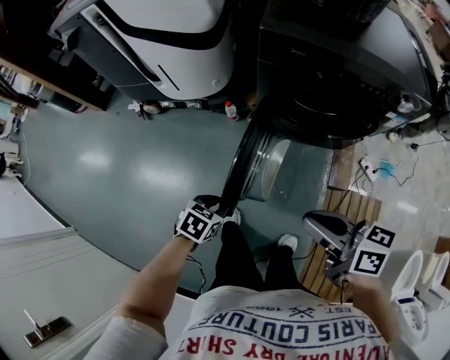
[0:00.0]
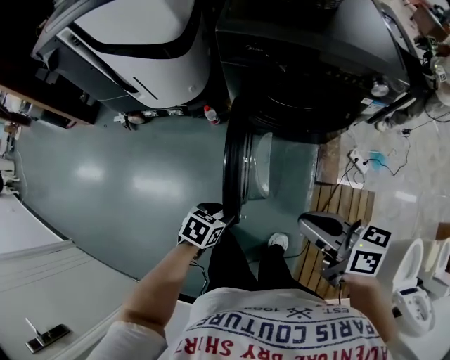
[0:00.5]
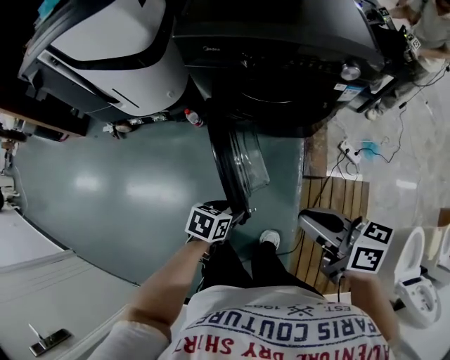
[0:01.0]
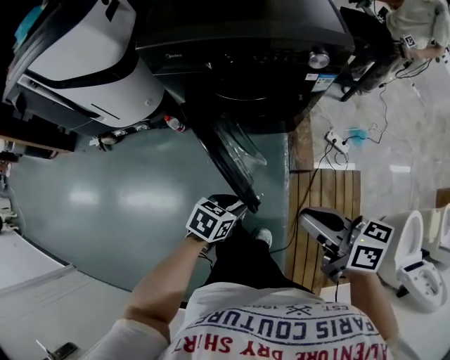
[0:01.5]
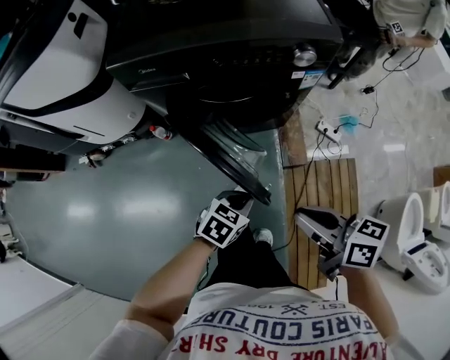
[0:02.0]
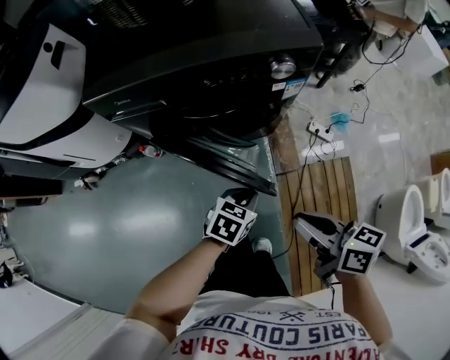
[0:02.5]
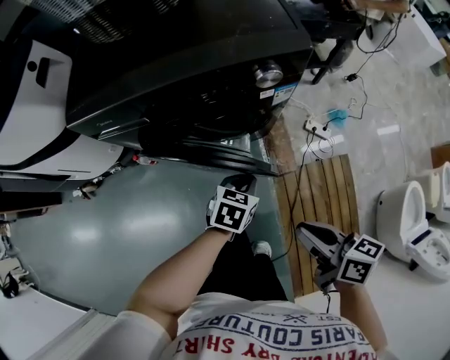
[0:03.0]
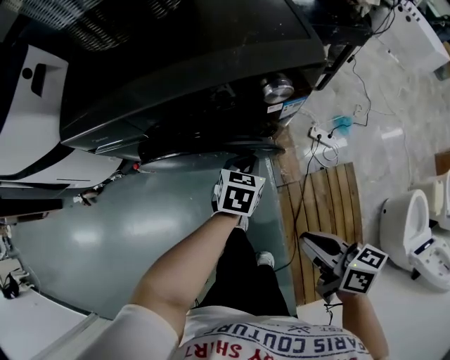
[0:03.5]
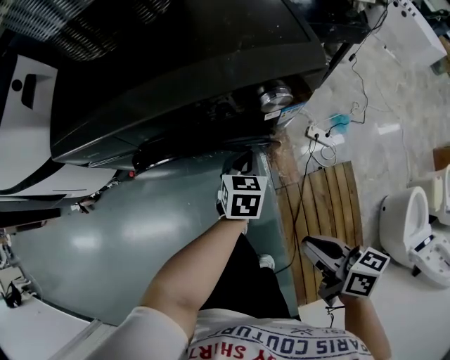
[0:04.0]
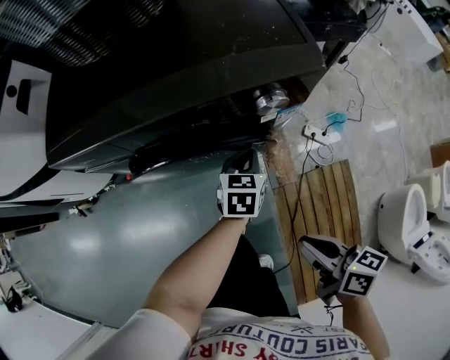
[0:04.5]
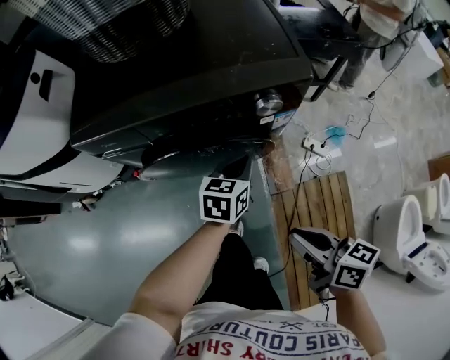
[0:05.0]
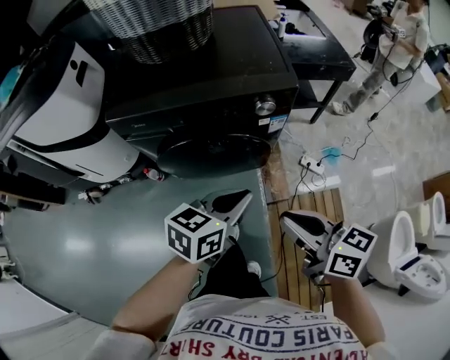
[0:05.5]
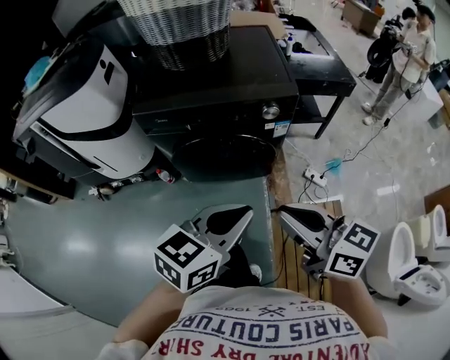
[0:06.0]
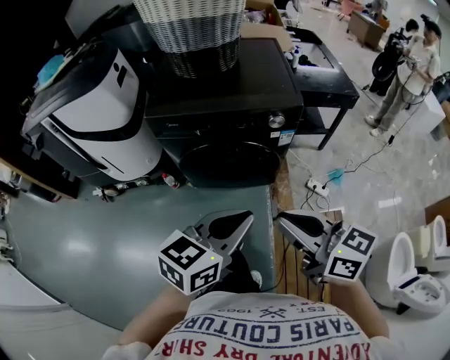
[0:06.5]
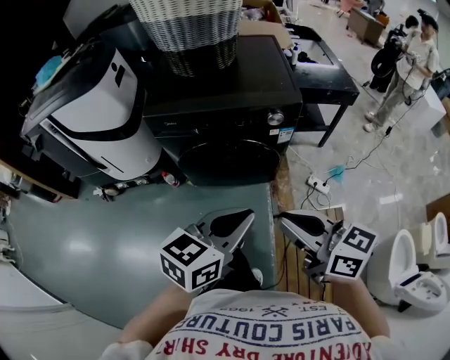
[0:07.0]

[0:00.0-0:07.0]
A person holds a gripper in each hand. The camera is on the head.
0:00.0 to 0:02.0: Both grippers travel together to the right, roughly 30 cm. The left gripper swivels about 20 degrees, and closes up.
0:02.0 to 0:03.5: The right gripper is displaced to the right, forward and downward by approximately 10 cm. The left gripper shifts roughly 25 cm forward.
0:03.5 to 0:05.0: The left gripper is displaced upward by some 10 cm.
0:05.0 to 0:07.0: The right gripper heads upward and backward, covering approximately 20 cm, and swivels some 30 degrees, while the left gripper goes about 40 cm upward and backward.

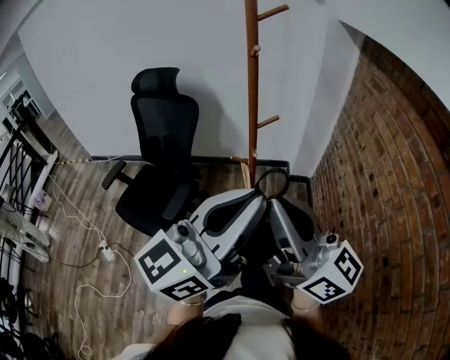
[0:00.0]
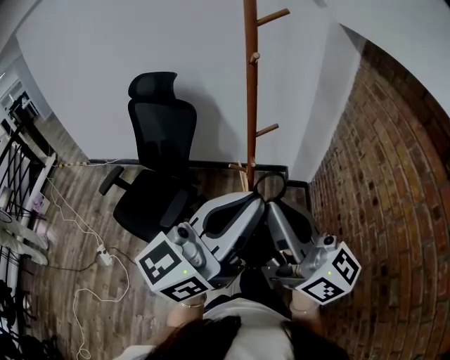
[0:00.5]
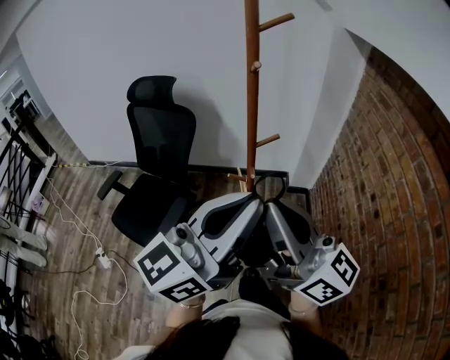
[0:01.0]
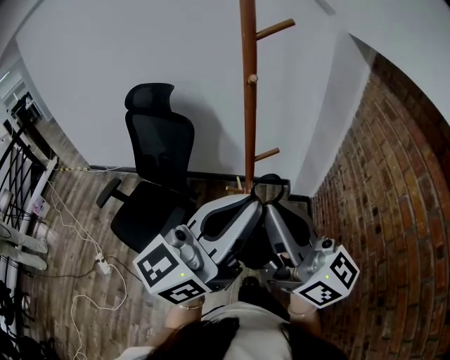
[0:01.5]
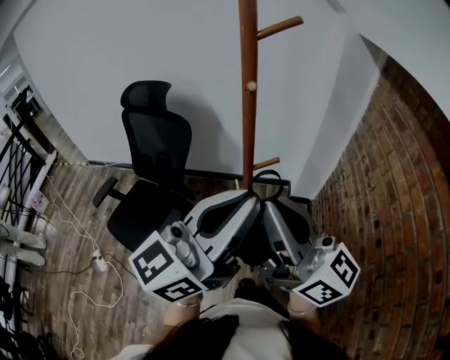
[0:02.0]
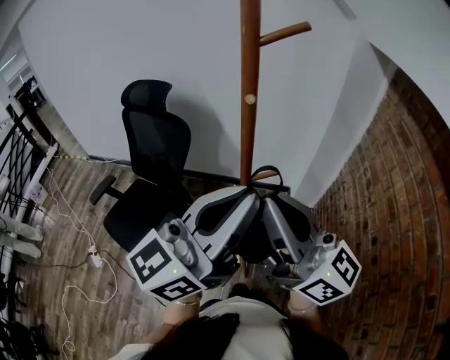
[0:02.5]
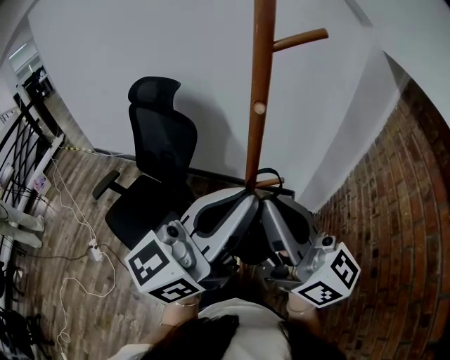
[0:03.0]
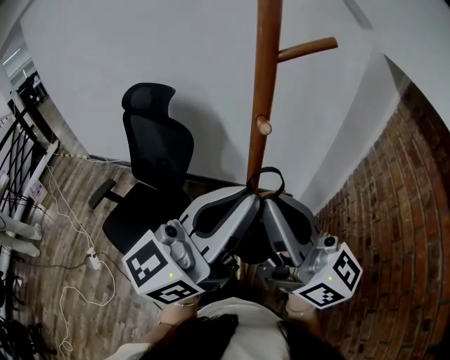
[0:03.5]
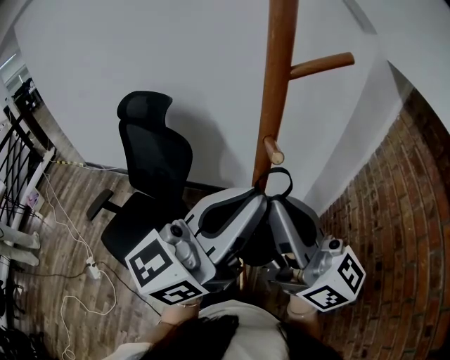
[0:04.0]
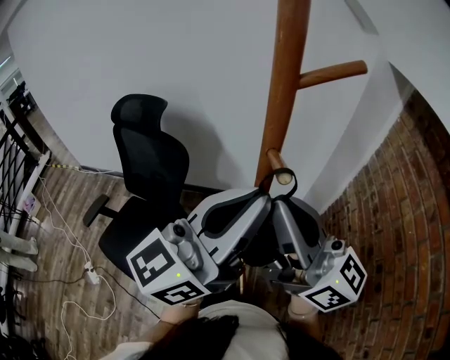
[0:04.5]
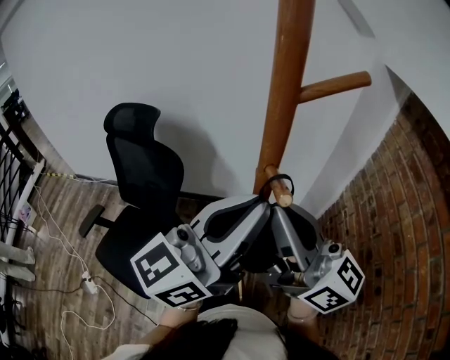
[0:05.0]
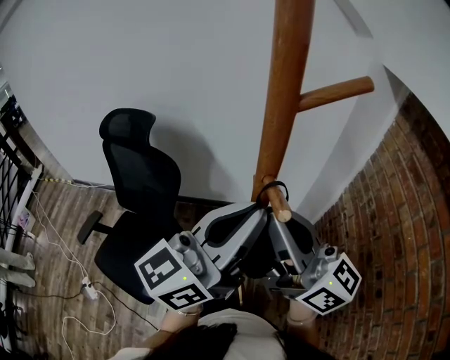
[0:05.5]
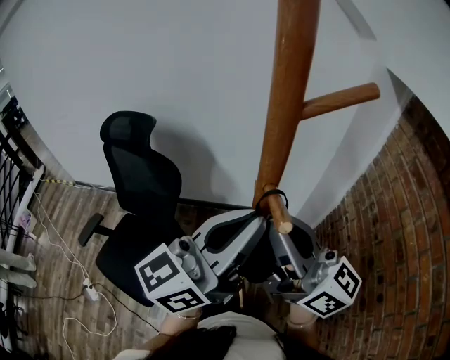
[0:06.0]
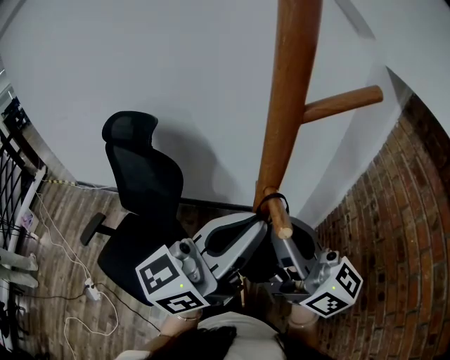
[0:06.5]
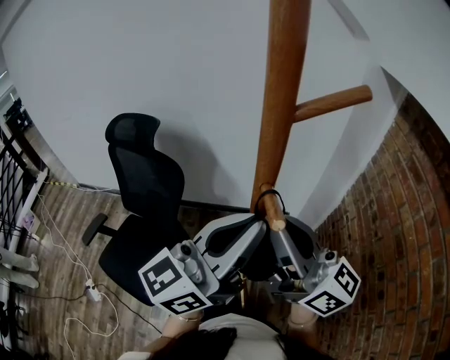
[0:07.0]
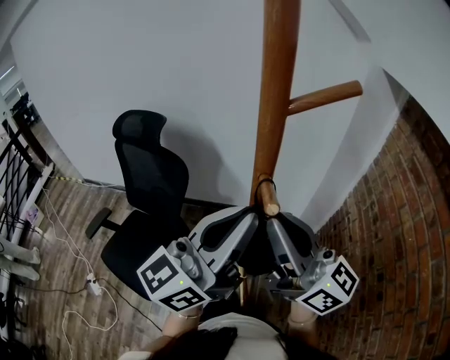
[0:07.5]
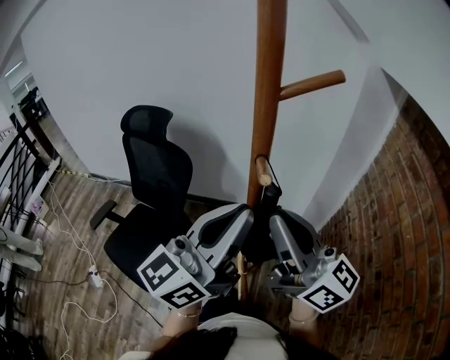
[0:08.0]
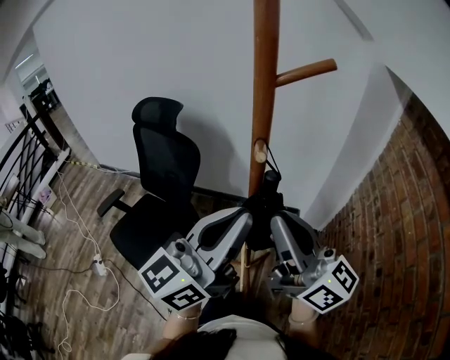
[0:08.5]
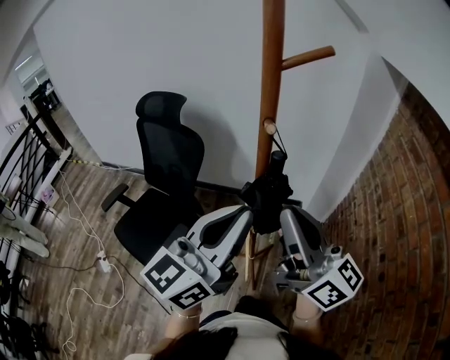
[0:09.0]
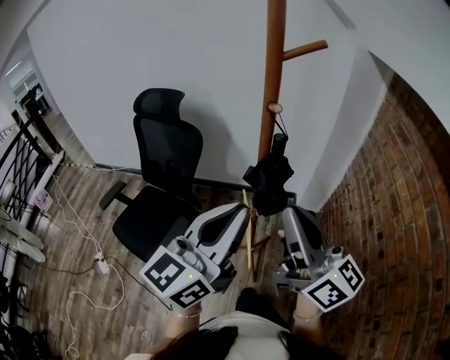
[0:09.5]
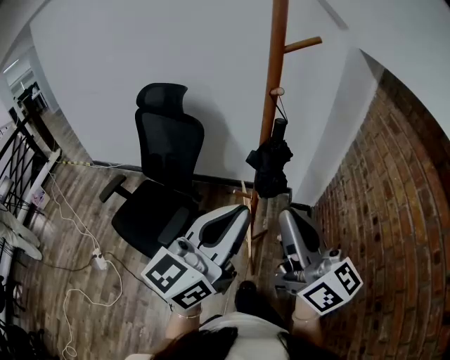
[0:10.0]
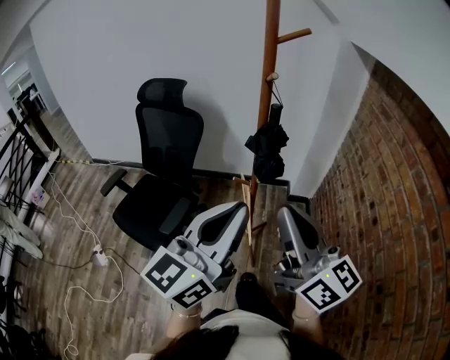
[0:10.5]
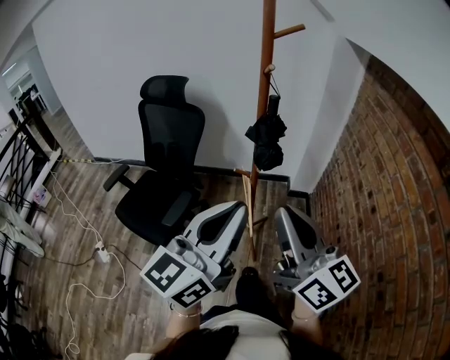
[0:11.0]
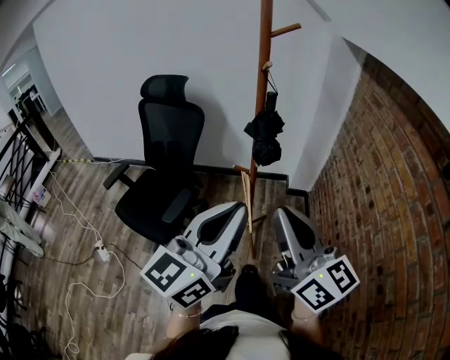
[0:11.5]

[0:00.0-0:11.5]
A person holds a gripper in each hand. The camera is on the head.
0:00.0 to 0:02.0: Both grippers travel together forward, some 15 cm.
0:02.0 to 0:04.0: Both grippers move forward, roughly 15 cm.
0:04.0 to 0:06.0: The grippers both shift forward by approximately 5 cm.
0:06.0 to 0:07.5: The grippers stay close to where they were, moving slightly.
0:07.5 to 0:09.5: Both grippers travel together backward, about 15 cm.
0:09.5 to 0:11.5: The two grippers go roughly 20 cm backward.

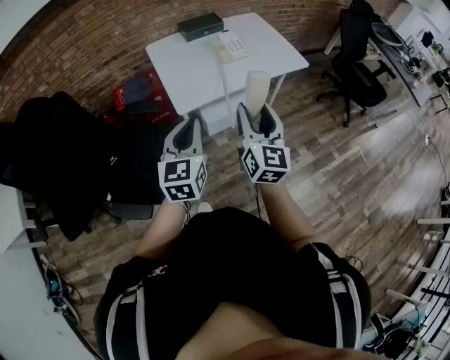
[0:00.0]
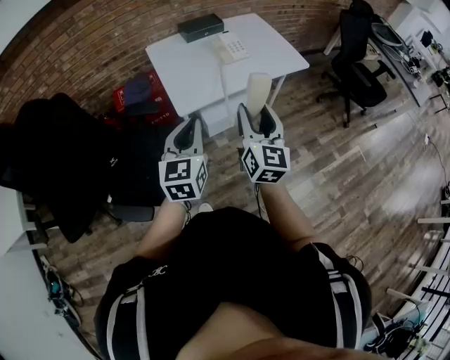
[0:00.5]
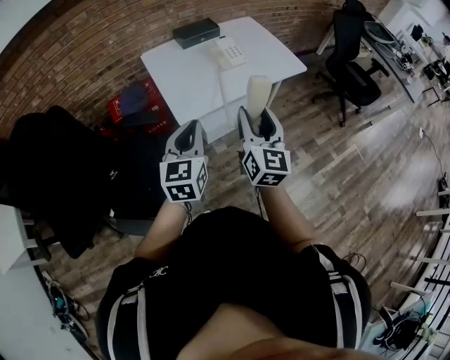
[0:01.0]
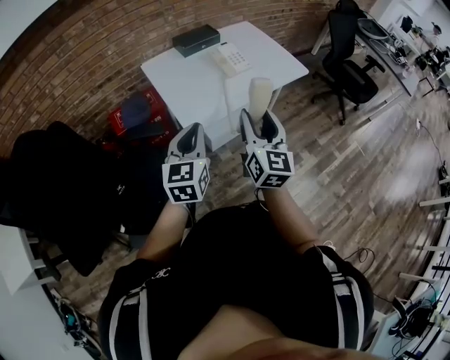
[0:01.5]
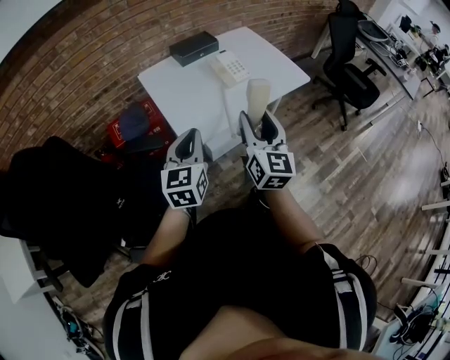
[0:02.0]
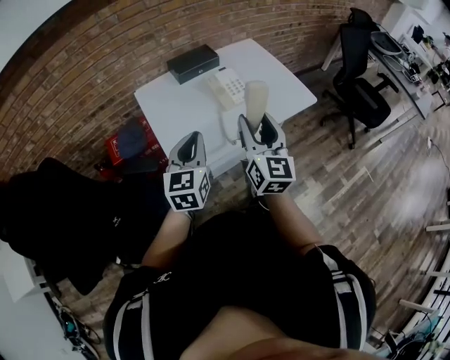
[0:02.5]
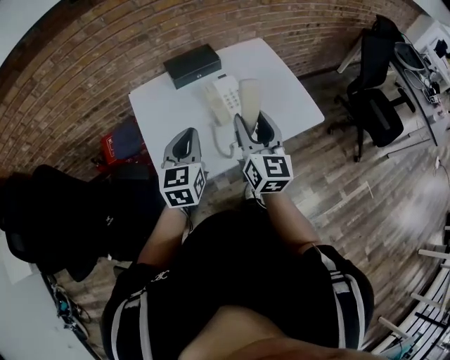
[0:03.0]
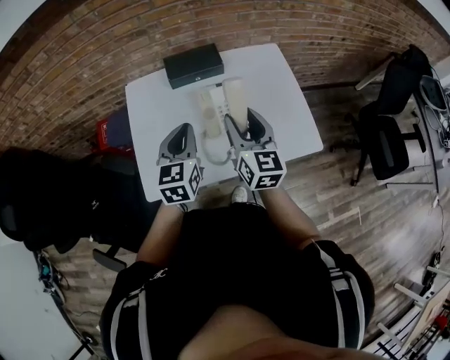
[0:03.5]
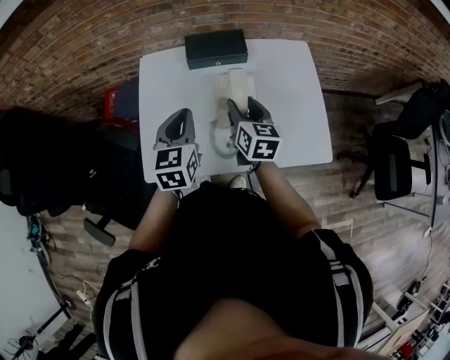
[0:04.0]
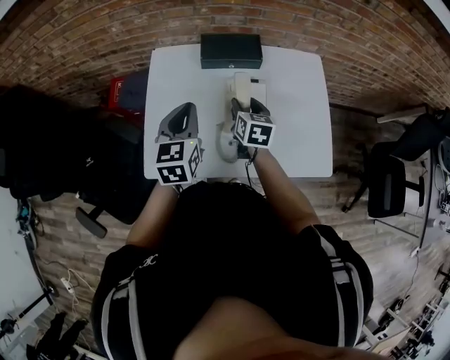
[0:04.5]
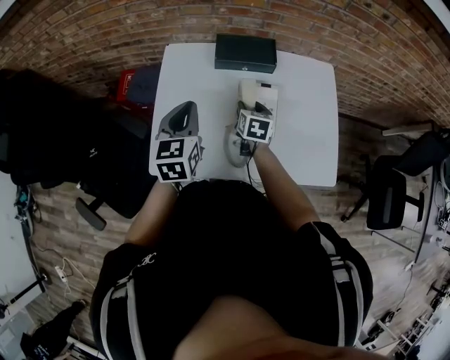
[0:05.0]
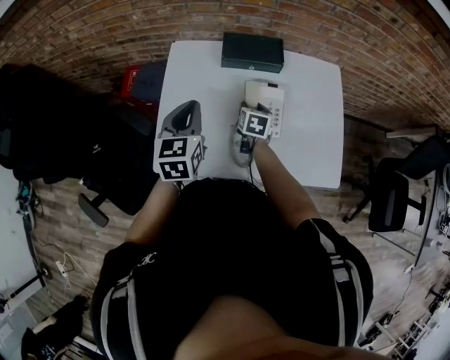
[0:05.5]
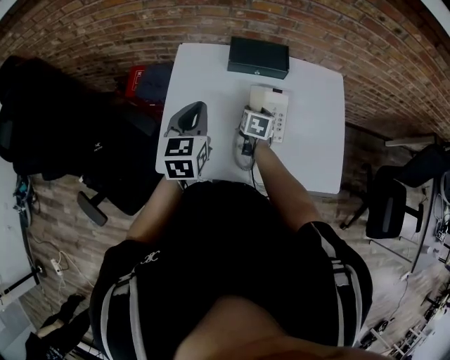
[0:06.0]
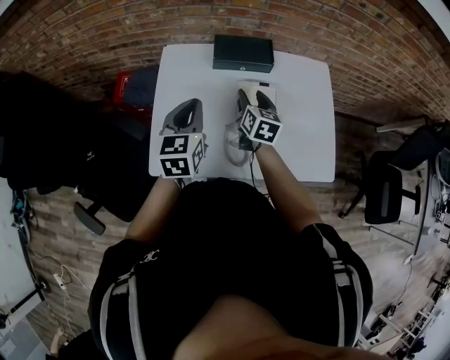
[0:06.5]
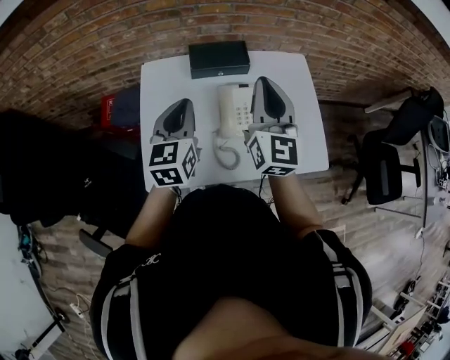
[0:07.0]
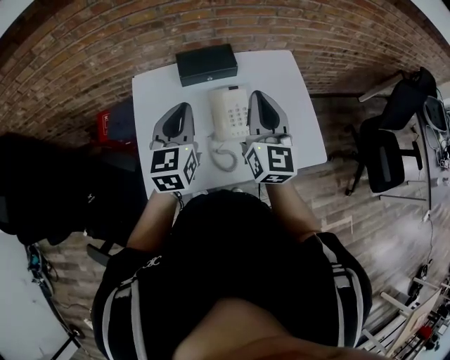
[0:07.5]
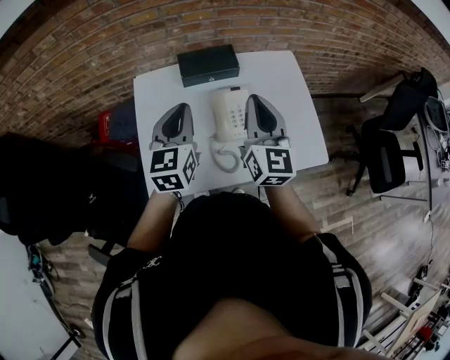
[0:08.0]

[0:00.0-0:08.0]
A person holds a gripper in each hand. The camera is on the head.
0:00.0 to 0:02.0: Both grippers move forward and to the left, about 15 cm.
0:02.0 to 0:04.0: The left gripper moves about 35 cm, and turns by roughly 30 degrees; the right gripper changes place by roughly 50 cm, and swivels roughly 40 degrees.
0:04.0 to 0:06.0: The left gripper heads to the left, covering approximately 5 cm; the right gripper travels downward and forward by approximately 15 cm, and rotates approximately 30 degrees.
0:06.0 to 0:08.0: The left gripper is displaced upward and to the right by roughly 10 cm; the right gripper moves upward, roughly 30 cm, tilts its fingers about 50 degrees upward, and closes up.
